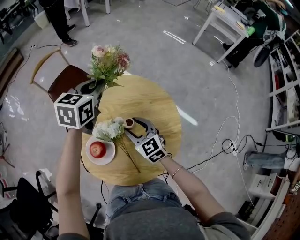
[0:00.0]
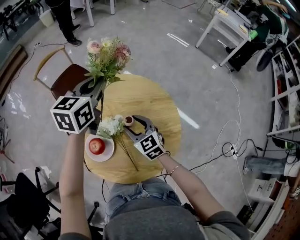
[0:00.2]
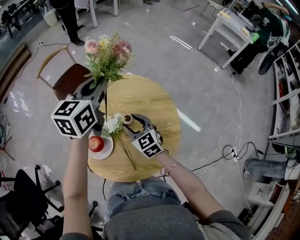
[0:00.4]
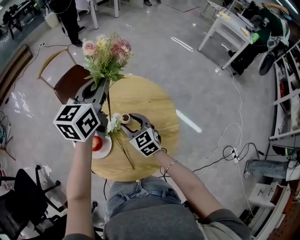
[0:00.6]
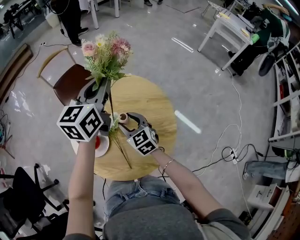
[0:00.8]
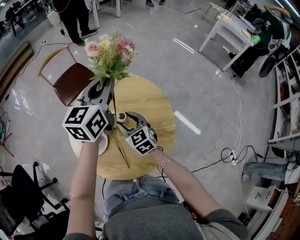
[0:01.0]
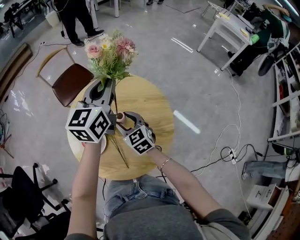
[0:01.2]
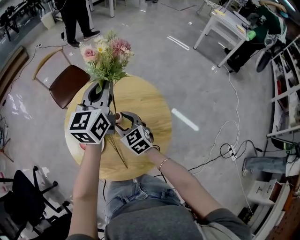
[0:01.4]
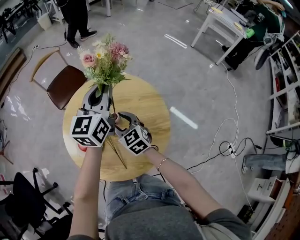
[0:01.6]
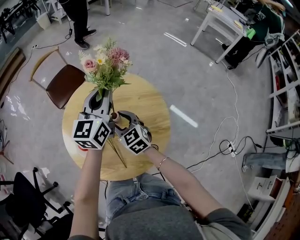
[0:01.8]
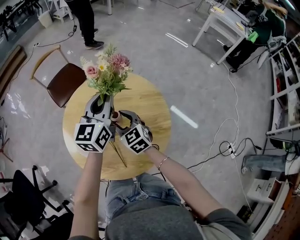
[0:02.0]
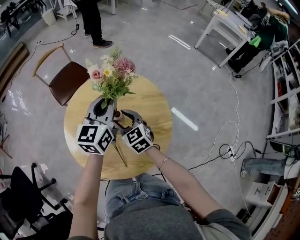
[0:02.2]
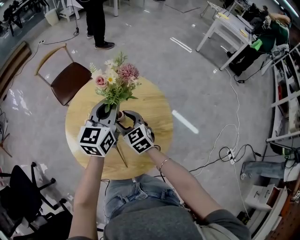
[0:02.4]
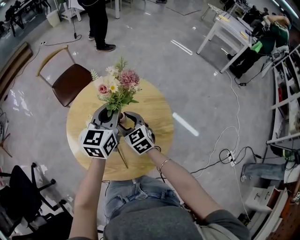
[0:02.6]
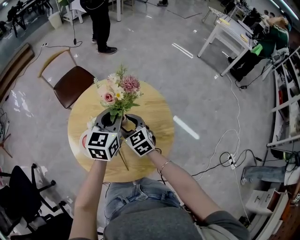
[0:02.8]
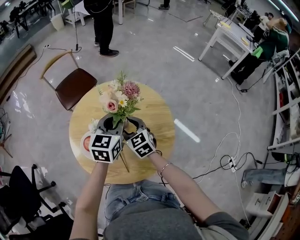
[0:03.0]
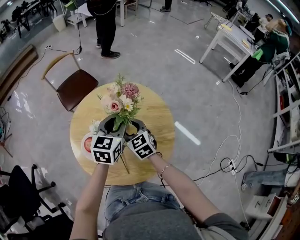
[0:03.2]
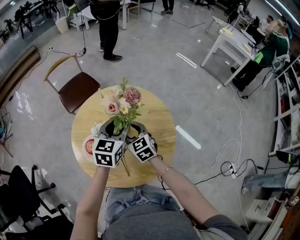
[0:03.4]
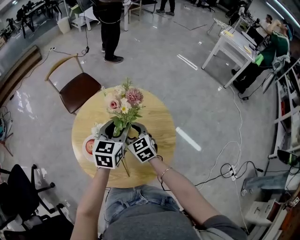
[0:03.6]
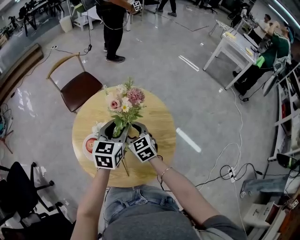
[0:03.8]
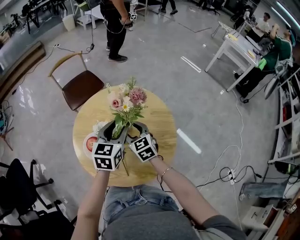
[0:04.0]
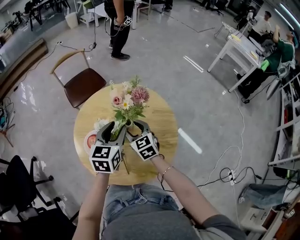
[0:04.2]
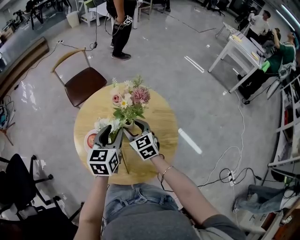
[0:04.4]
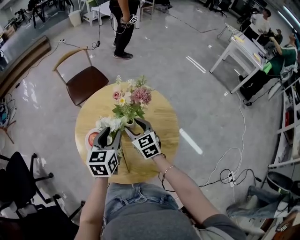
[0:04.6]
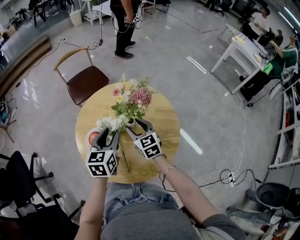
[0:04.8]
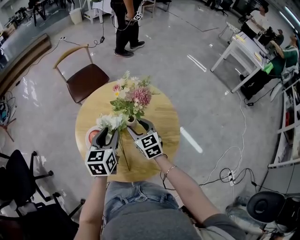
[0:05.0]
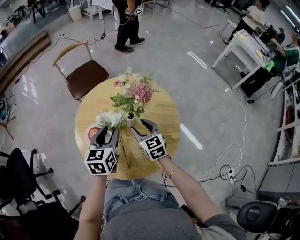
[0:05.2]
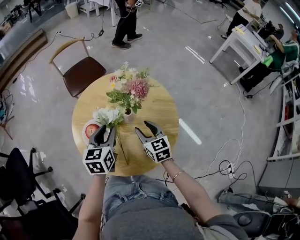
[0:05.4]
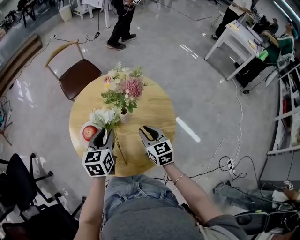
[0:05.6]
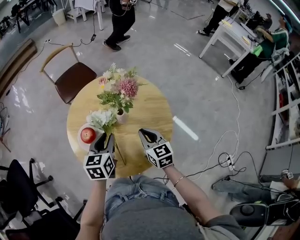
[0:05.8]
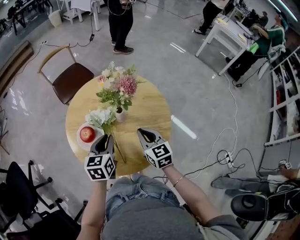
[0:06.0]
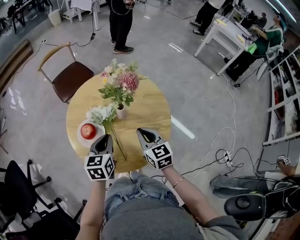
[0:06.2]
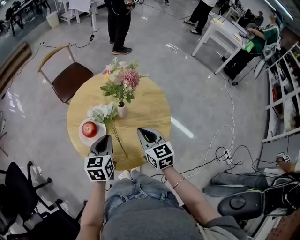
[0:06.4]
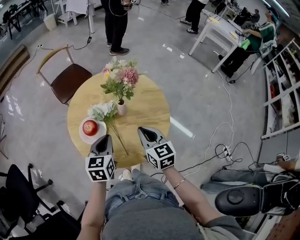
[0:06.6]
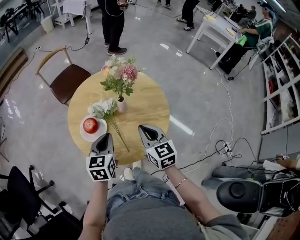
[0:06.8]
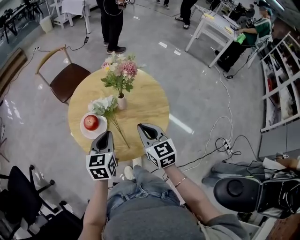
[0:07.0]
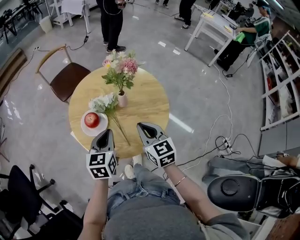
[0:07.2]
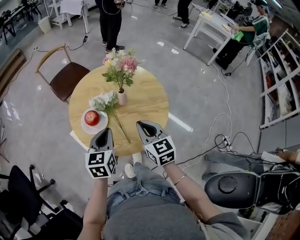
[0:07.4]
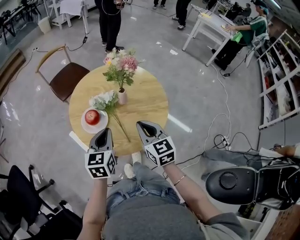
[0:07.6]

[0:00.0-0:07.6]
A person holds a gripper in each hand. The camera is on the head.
0:00.0 to 0:01.6: The left gripper goes roughly 10 cm backward and to the right, and turns by about 30 degrees.
0:01.6 to 0:03.0: The left gripper is displaced downward and backward by approximately 10 cm, and changes its angle by roughly 20 degrees.
0:03.0 to 0:04.6: The left gripper goes approximately 10 cm to the left and backward, and opens.
0:04.6 to 0:06.0: The right gripper travels backward and to the right by approximately 10 cm, and closes; the left gripper heads downward and backward, covering about 10 cm, and closes its fingers.
0:06.0 to 0:07.6: Both grippers move backward and upward, about 10 cm.

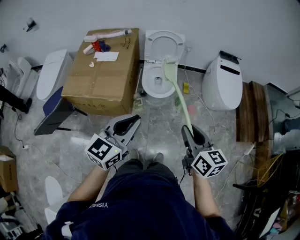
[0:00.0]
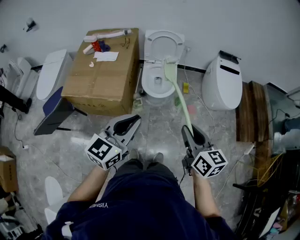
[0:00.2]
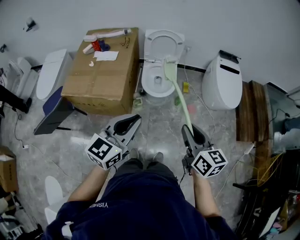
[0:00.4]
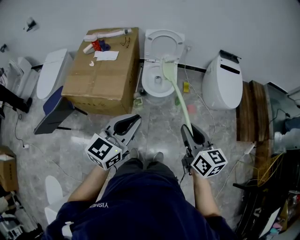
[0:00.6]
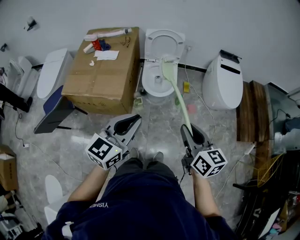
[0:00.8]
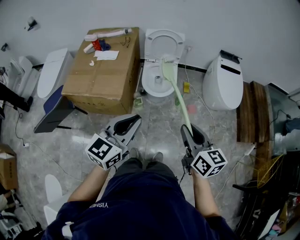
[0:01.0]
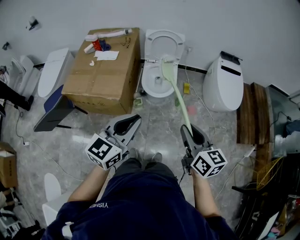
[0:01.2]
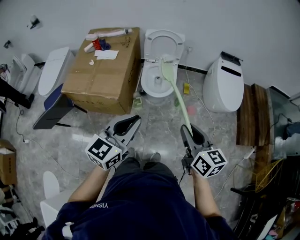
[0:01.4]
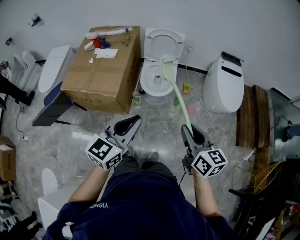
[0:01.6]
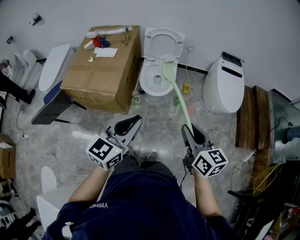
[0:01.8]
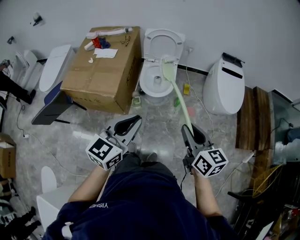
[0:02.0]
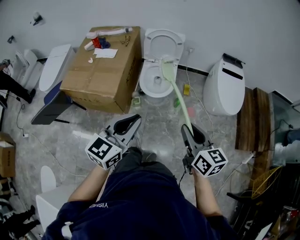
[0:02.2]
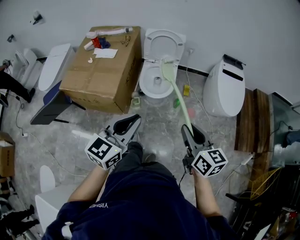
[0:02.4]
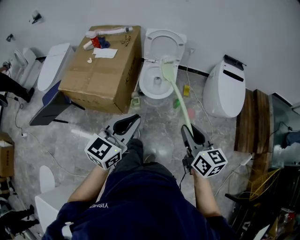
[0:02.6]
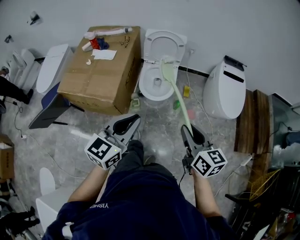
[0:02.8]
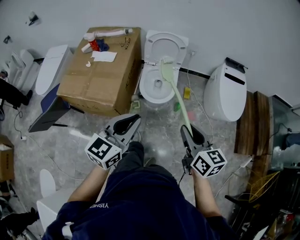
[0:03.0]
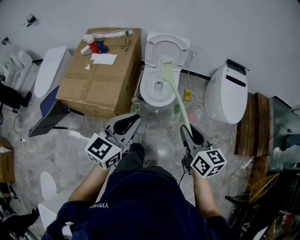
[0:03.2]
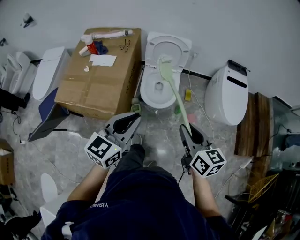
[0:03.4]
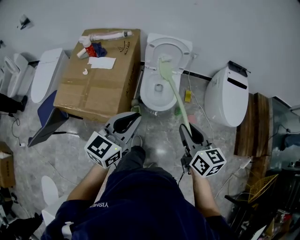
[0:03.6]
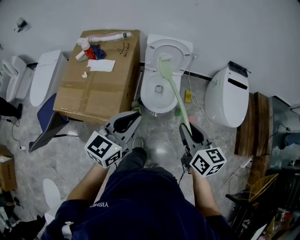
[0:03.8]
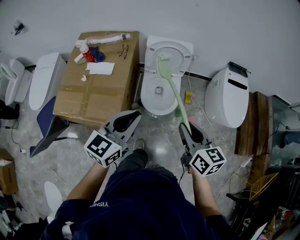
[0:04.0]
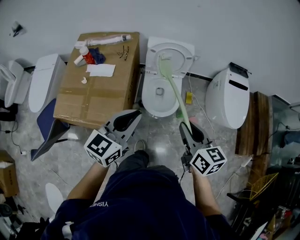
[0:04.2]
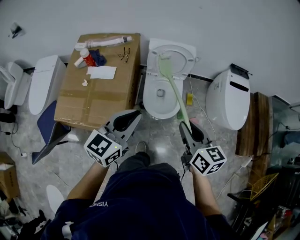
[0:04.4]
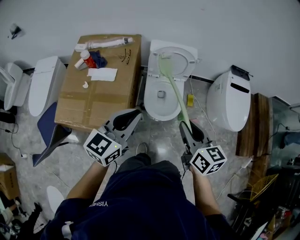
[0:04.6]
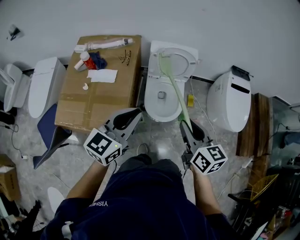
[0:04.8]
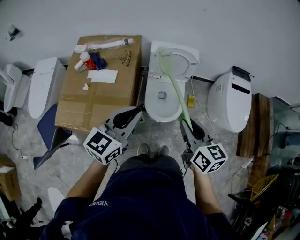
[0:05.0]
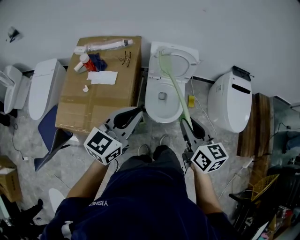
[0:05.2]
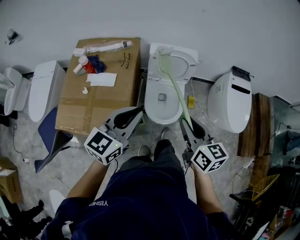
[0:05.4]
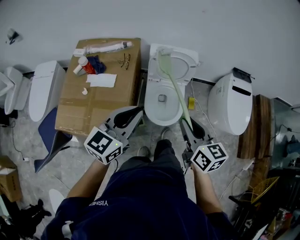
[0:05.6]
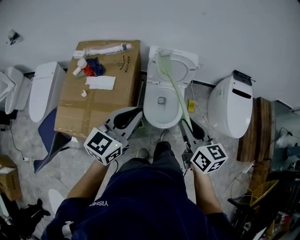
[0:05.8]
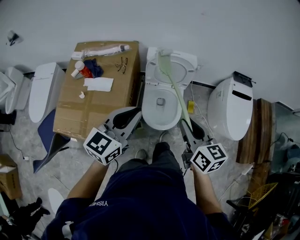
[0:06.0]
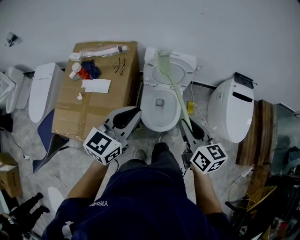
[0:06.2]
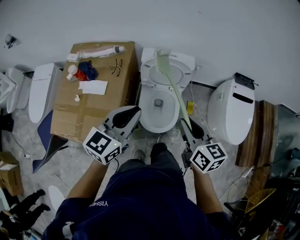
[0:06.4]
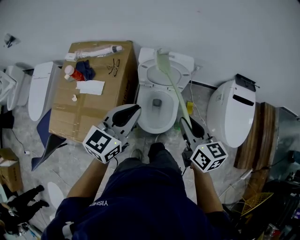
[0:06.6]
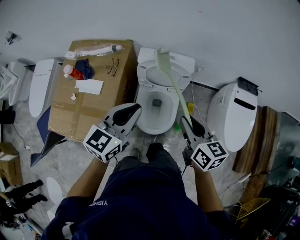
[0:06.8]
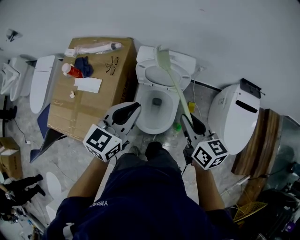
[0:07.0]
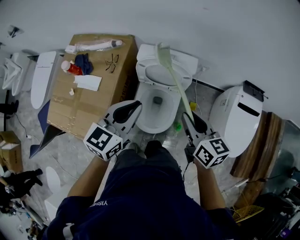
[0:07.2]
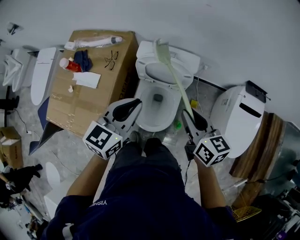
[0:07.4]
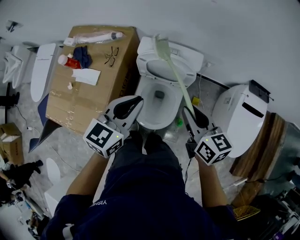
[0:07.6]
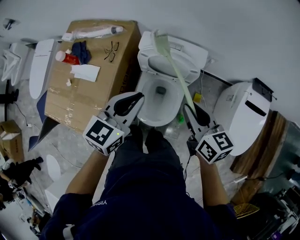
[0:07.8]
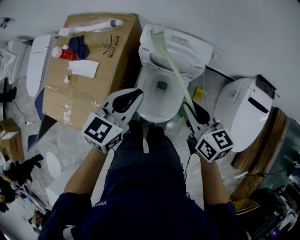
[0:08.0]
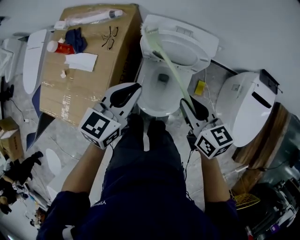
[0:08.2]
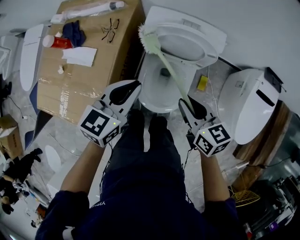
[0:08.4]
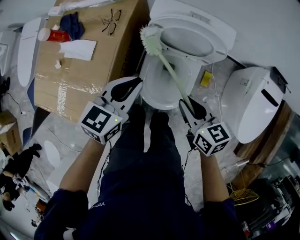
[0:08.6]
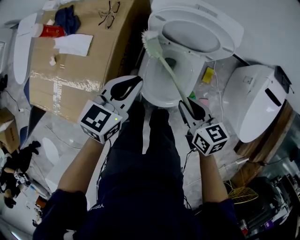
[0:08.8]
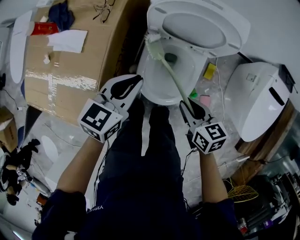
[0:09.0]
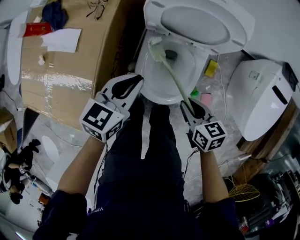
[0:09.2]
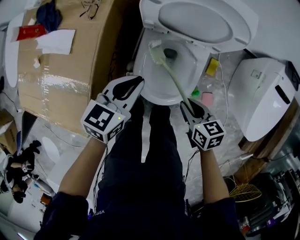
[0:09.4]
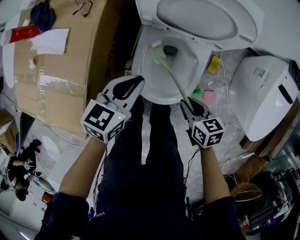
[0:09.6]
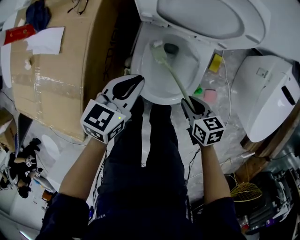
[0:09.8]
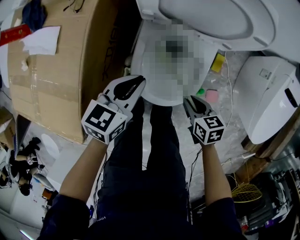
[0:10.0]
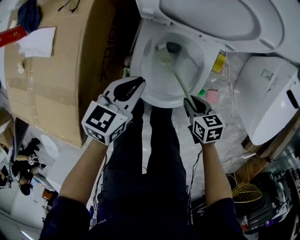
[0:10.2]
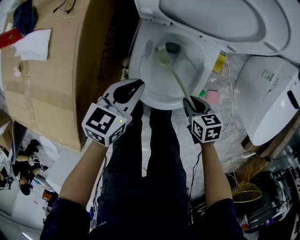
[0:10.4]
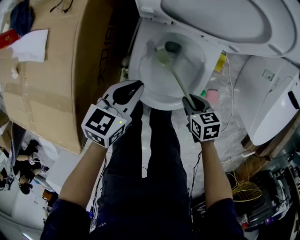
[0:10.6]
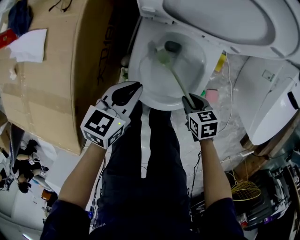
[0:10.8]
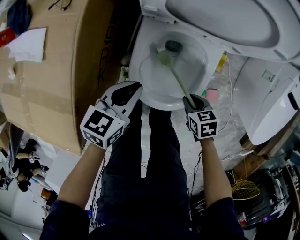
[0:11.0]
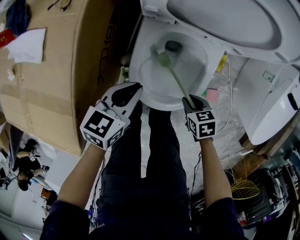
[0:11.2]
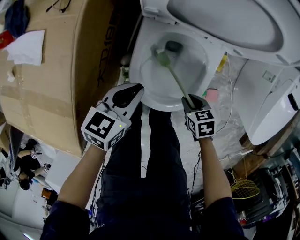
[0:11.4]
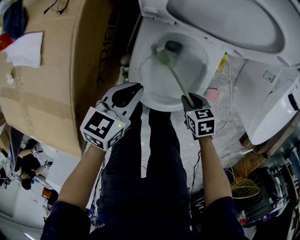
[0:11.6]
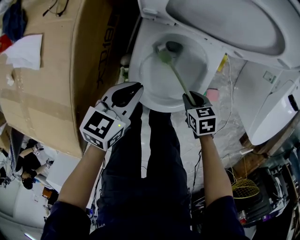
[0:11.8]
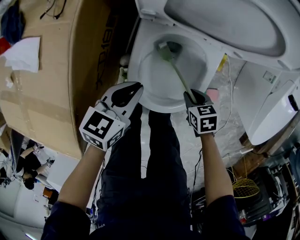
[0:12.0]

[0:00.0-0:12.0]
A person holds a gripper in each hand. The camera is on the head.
0:00.0 to 0:01.6: The two grippers go roughly 5 cm to the right.
0:01.6 to 0:03.0: Both grippers move forward, approximately 10 cm.
0:03.0 to 0:04.4: The grippers both shift forward and to the left by some 20 cm.
0:04.4 to 0:06.0: The two grippers go approximately 10 cm forward.
0:06.0 to 0:07.6: The left gripper heads forward, to the right and downward, covering about 20 cm; the right gripper travels forward and to the right by about 20 cm.
0:07.6 to 0:09.0: Both grippers travel together downward, about 25 cm. The right gripper swivels roughly 20 degrees.
0:09.0 to 0:10.4: The grippers both shift downward by some 20 cm.
0:10.4 to 0:12.0: The right gripper ends up some 5 cm from where it was.

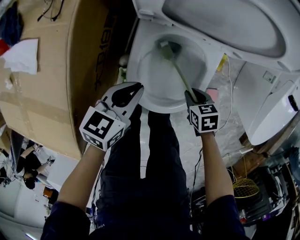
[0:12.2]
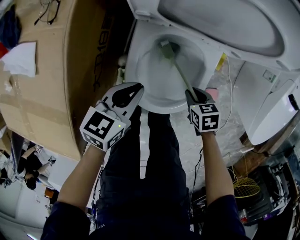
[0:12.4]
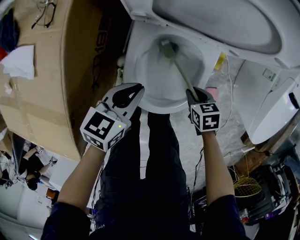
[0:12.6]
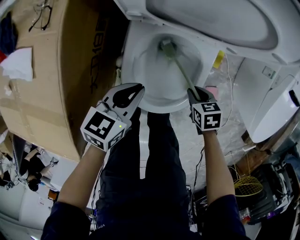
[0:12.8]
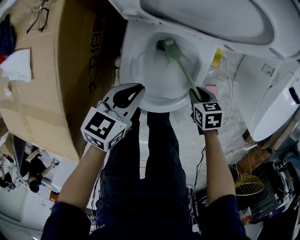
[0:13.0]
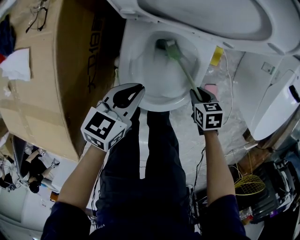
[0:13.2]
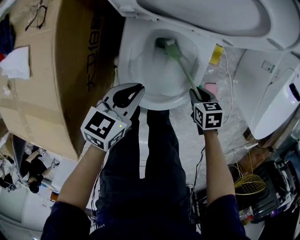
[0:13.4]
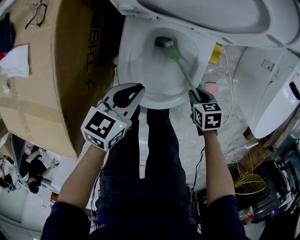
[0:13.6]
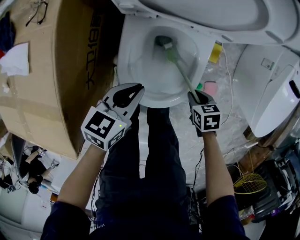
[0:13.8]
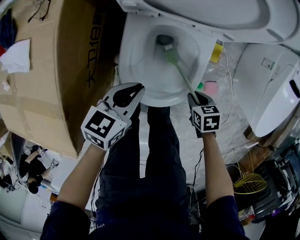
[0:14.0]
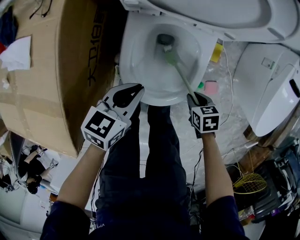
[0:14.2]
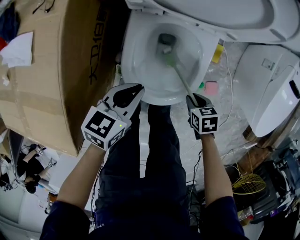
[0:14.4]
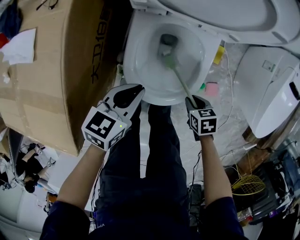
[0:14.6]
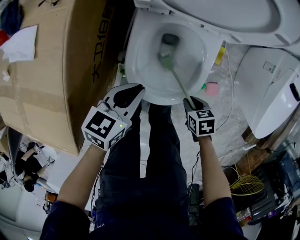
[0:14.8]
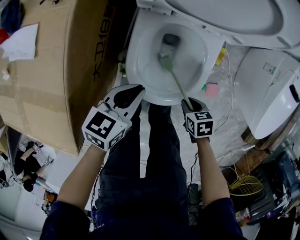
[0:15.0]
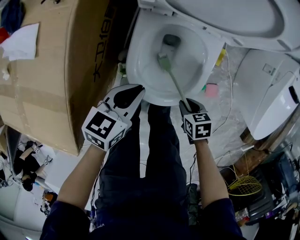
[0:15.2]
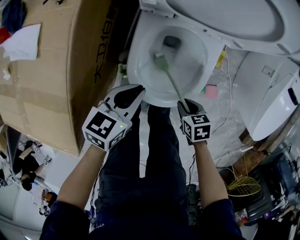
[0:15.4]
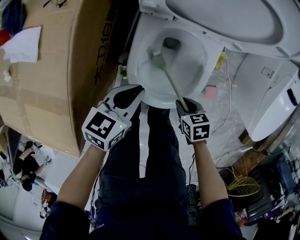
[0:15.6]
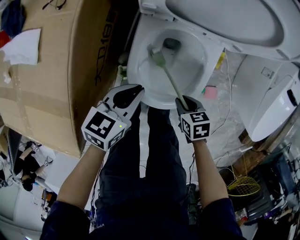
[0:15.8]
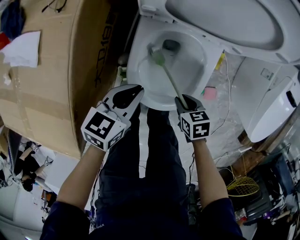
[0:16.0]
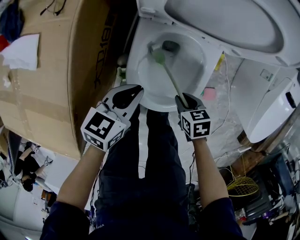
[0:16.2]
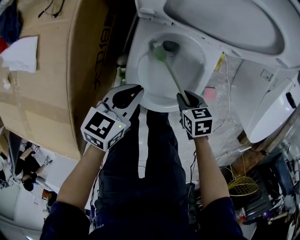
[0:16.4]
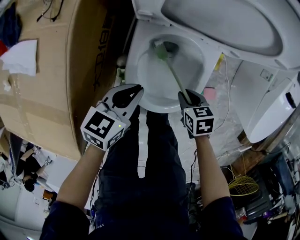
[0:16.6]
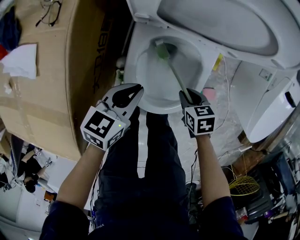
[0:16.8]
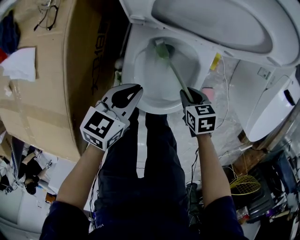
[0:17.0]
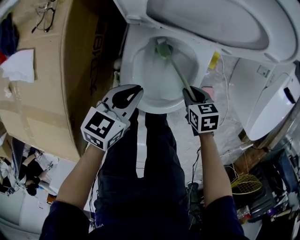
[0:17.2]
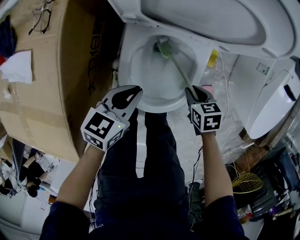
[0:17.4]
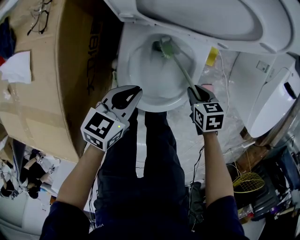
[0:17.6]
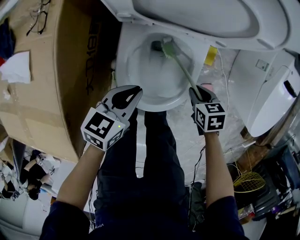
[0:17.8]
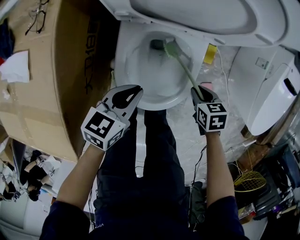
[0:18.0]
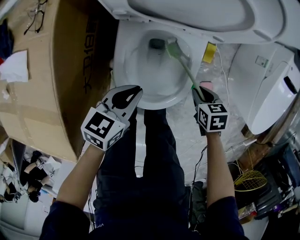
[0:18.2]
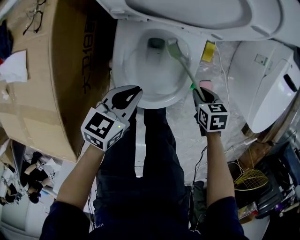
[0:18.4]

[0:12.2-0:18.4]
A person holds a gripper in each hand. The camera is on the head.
0:12.2 to 0:13.8: The right gripper moves roughly 5 cm.
0:13.8 to 0:15.4: The right gripper ends up about 10 cm from where it was.
0:15.4 to 0:16.8: The right gripper moves some 10 cm.
0:16.8 to 0:18.4: The left gripper ends up some 5 cm from where it was. Meanwhile the right gripper goes approximately 10 cm to the right.
